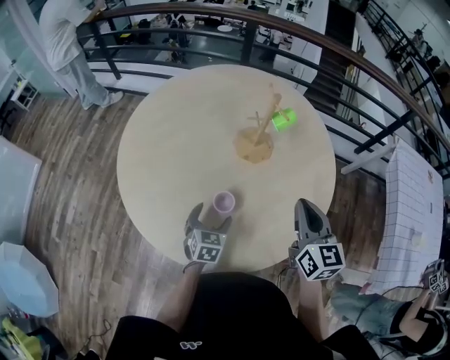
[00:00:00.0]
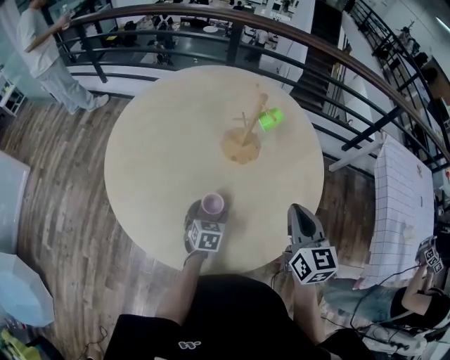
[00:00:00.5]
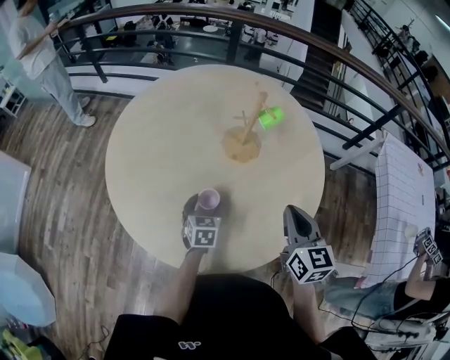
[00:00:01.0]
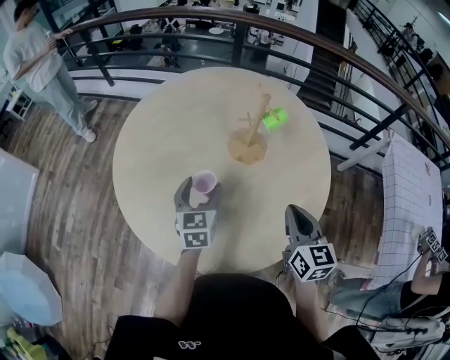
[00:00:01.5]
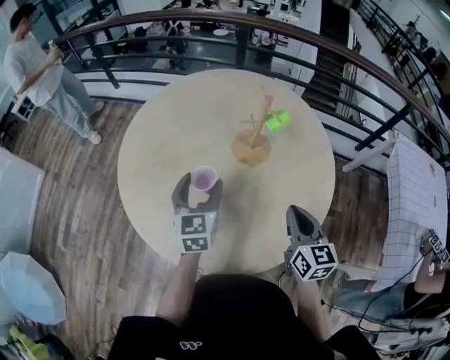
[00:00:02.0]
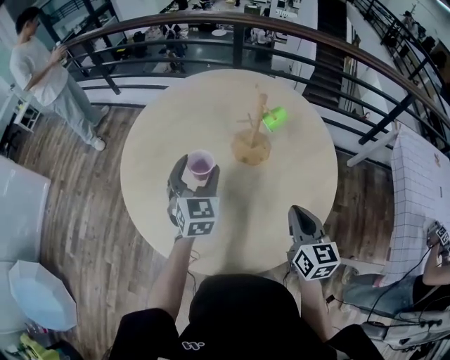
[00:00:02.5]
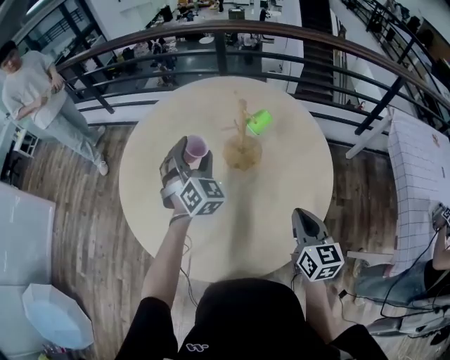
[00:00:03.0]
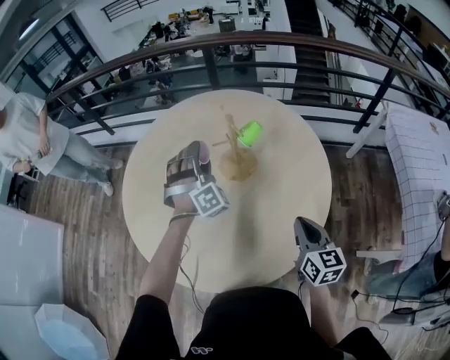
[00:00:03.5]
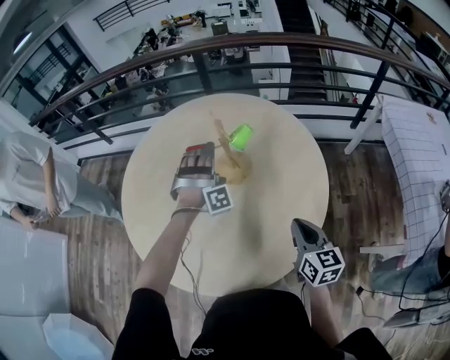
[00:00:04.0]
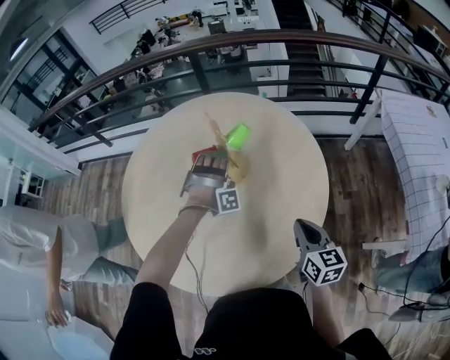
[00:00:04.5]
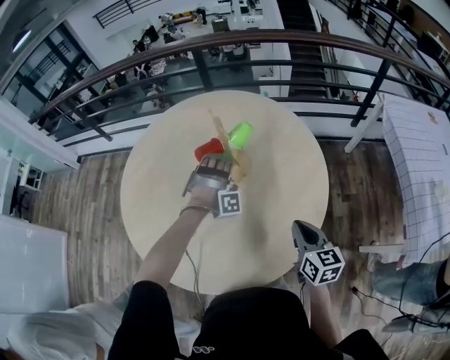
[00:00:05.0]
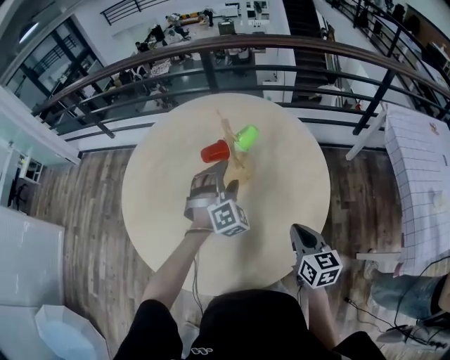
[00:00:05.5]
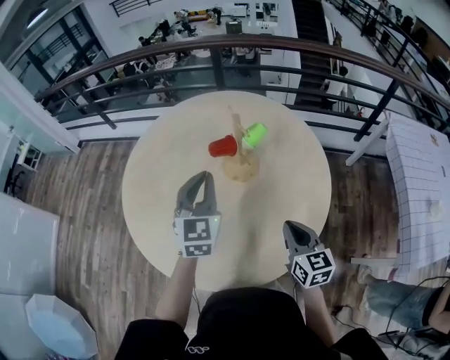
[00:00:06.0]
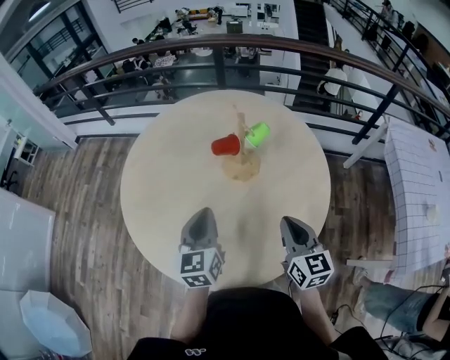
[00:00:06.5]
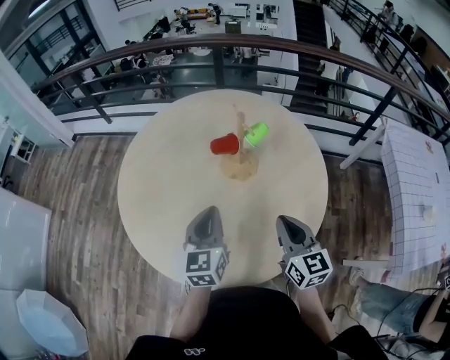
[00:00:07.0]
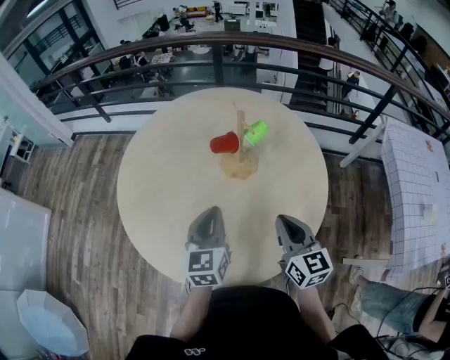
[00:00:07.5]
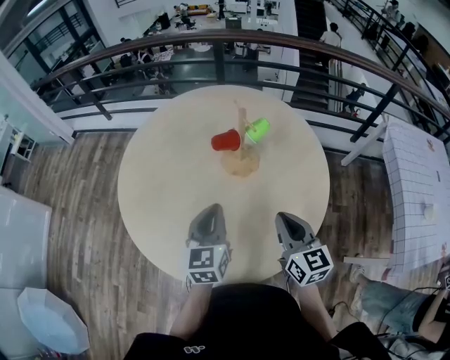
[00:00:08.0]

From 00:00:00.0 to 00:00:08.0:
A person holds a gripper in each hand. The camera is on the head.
From 00:00:00.0 to 00:00:02.0: The left gripper heads upward and forward, covering approximately 20 cm, and rotates some 20 degrees.
From 00:00:02.0 to 00:00:04.0: The right gripper travels to the right by approximately 5 cm. Meanwhile the left gripper travels to the right and forward by approximately 20 cm, and twists approximately 100 degrees clockwise, seen from behind.
From 00:00:04.0 to 00:00:06.0: The left gripper travels backward, upward and to the left by some 15 cm, rotates around the line of its fingers by some 90 degrees, counterclockwise from behind, and closes.
From 00:00:06.0 to 00:00:08.0: The left gripper moves backward and downward, approximately 10 cm, and swivels about 20 degrees, while the right gripper ends up about 5 cm from where it was.

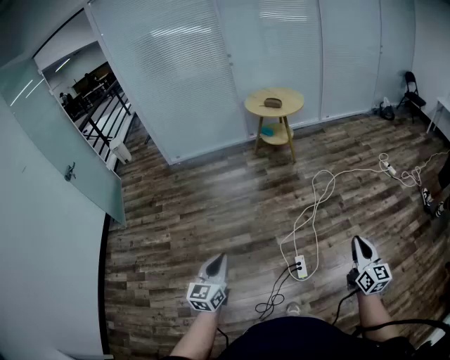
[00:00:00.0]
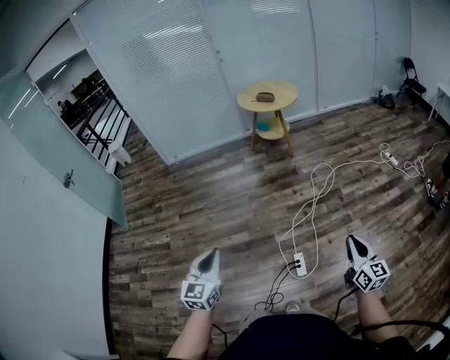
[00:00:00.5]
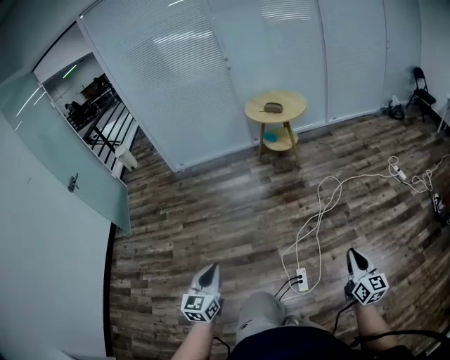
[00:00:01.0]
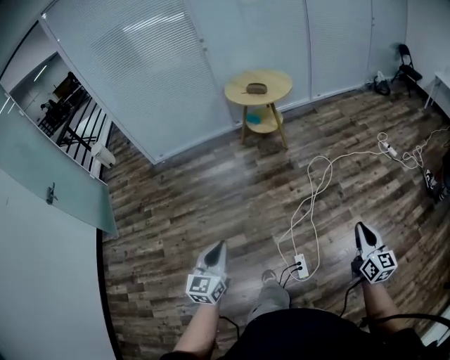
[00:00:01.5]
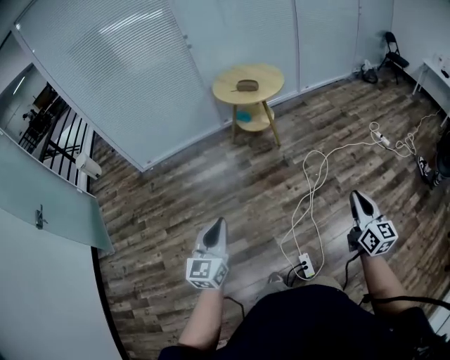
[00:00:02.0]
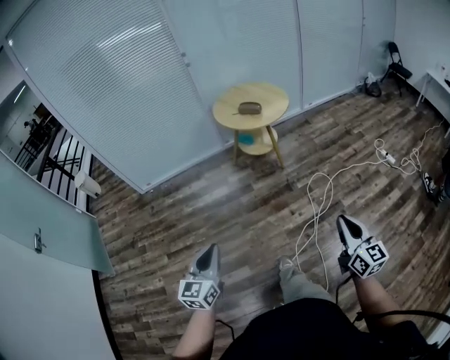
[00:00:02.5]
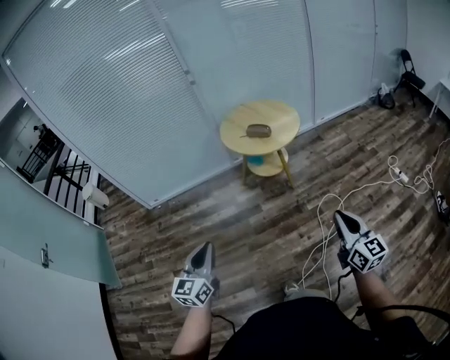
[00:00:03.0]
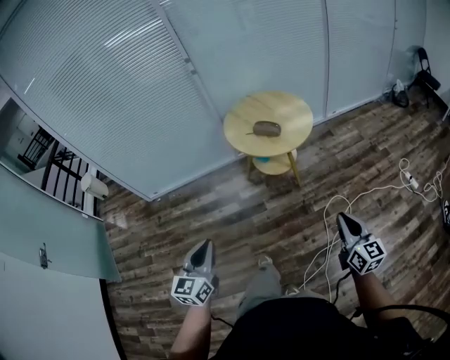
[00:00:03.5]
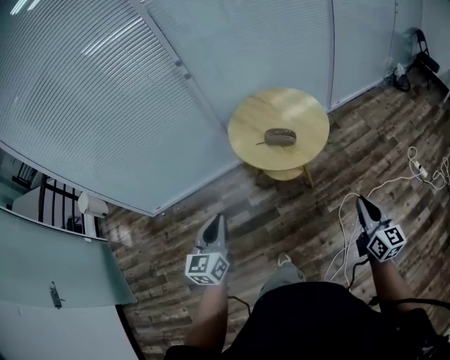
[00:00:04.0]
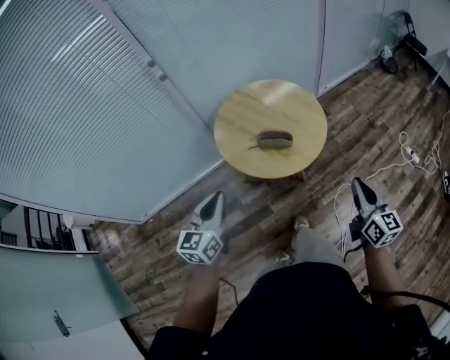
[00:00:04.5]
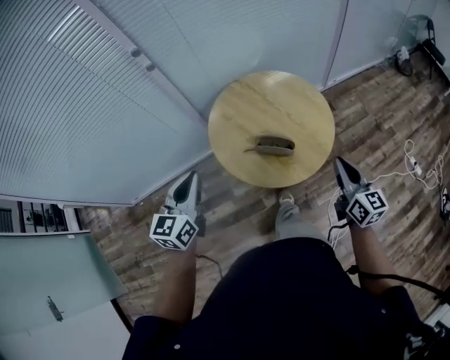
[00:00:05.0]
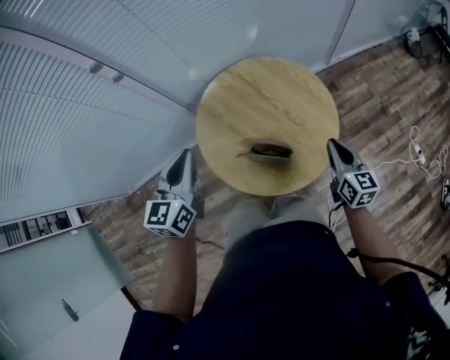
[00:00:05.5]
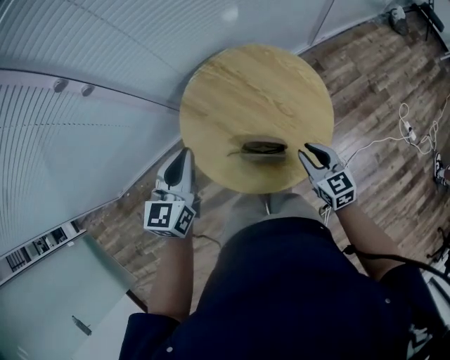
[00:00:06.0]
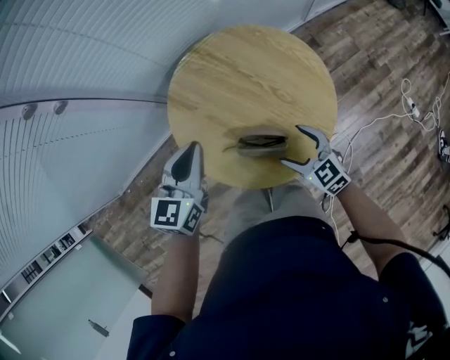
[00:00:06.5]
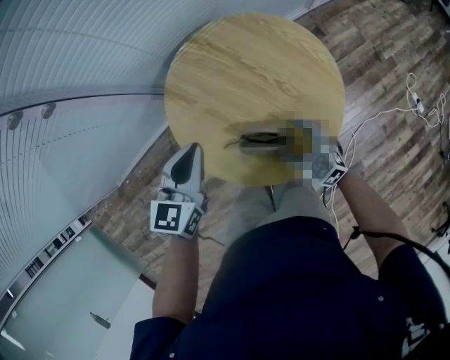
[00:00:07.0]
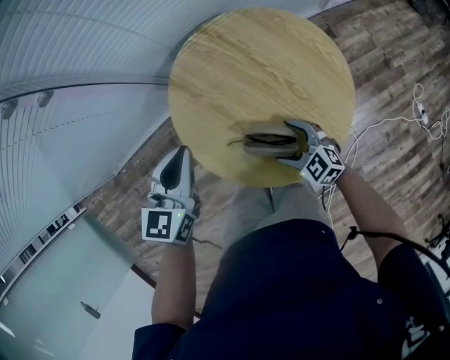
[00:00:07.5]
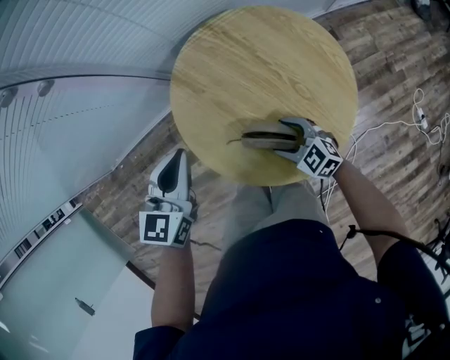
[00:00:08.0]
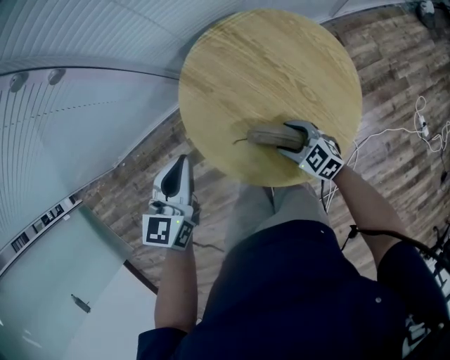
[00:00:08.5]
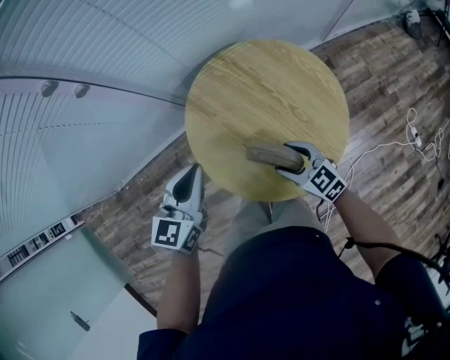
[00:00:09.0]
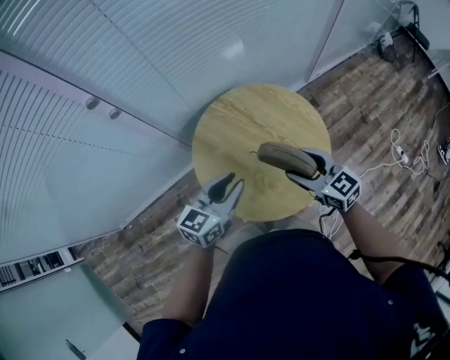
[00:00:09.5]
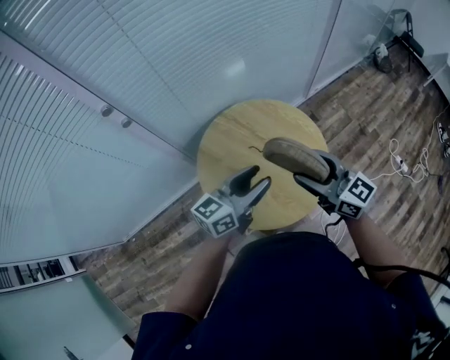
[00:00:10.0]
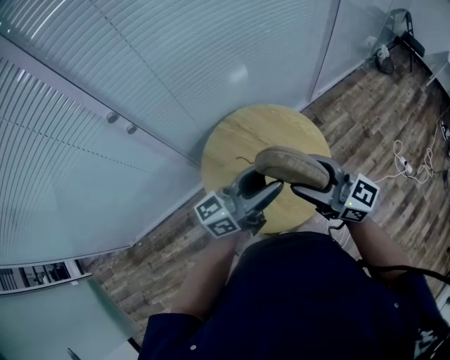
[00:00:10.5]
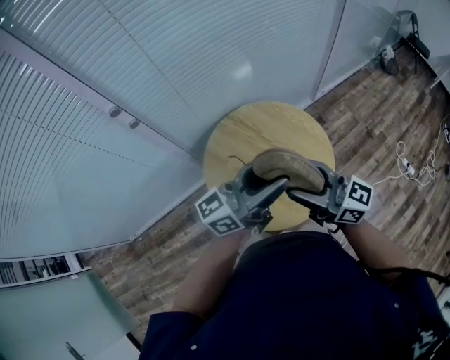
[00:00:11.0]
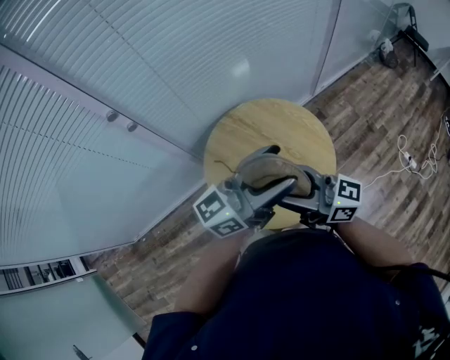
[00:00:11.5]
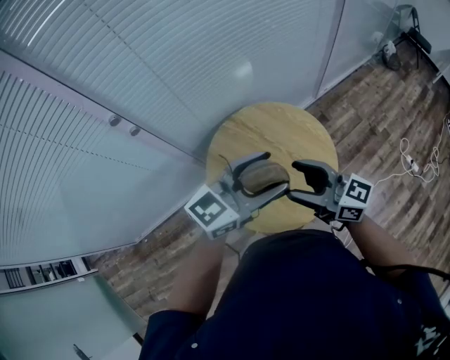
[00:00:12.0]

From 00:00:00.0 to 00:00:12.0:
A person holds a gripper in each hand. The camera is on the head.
From 00:00:00.0 to 00:00:02.0: Both grippers move forward, about 35 cm.
From 00:00:02.0 to 00:00:04.0: The pair of grippers is taken forward, about 70 cm.
From 00:00:04.0 to 00:00:06.0: The two grippers travel together, forward, approximately 50 cm. The right gripper changes its angle by some 30 degrees.
From 00:00:06.0 to 00:00:08.0: The left gripper heads downward, covering some 5 cm. The right gripper moves downward and to the left, roughly 15 cm, changes its angle by roughly 40 degrees, and opens.
From 00:00:08.0 to 00:00:10.0: The left gripper shifts by some 15 cm, swivels about 50 degrees, and opens its fingers. The right gripper travels upward by approximately 35 cm, and tips its fingers upward by approximately 40 degrees.
From 00:00:10.0 to 00:00:12.0: The left gripper moves upward, approximately 10 cm, turns by about 20 degrees, and opens its fingers.

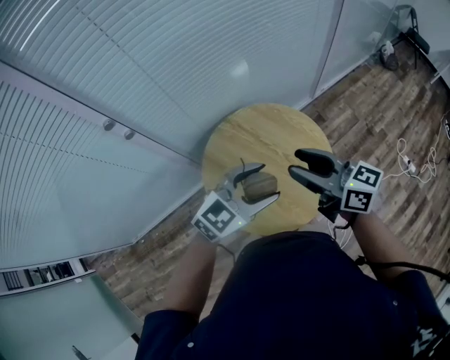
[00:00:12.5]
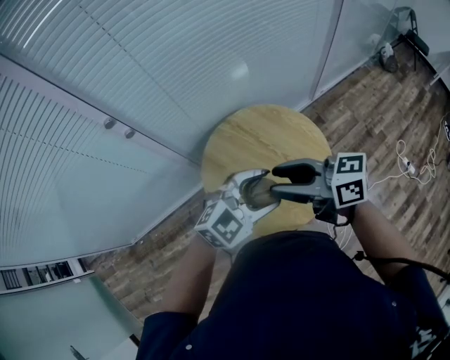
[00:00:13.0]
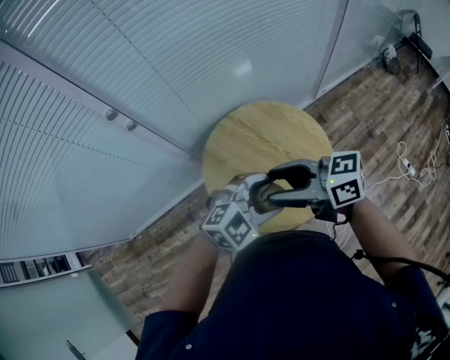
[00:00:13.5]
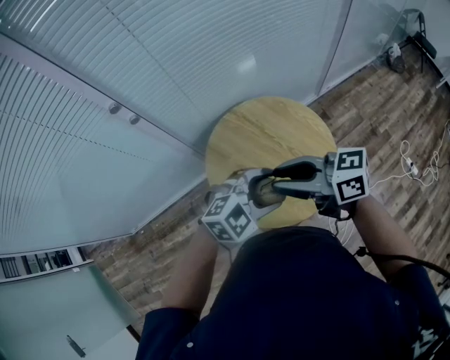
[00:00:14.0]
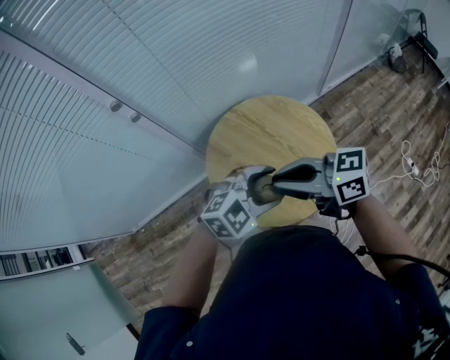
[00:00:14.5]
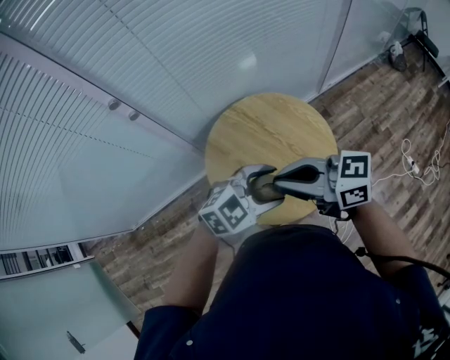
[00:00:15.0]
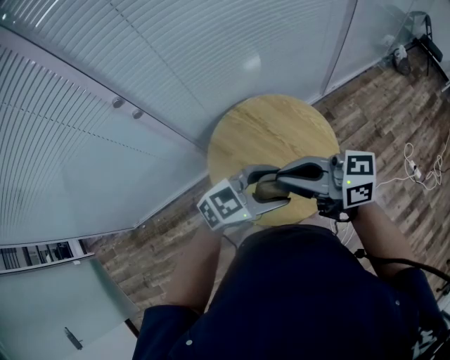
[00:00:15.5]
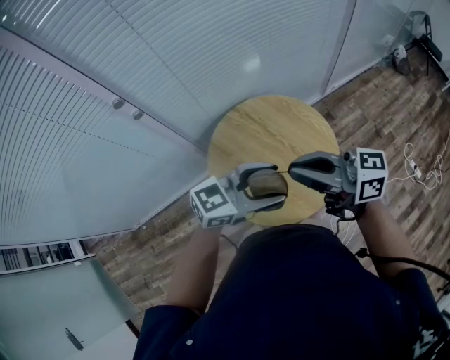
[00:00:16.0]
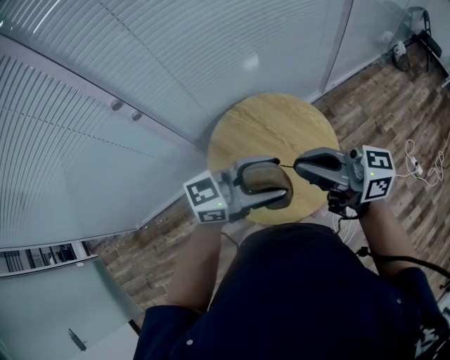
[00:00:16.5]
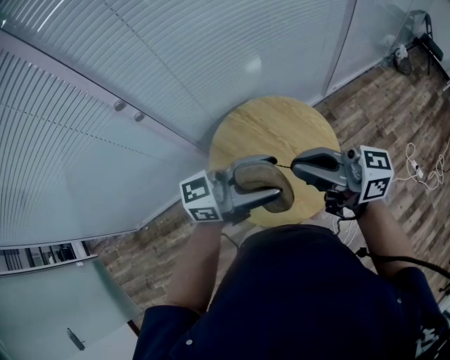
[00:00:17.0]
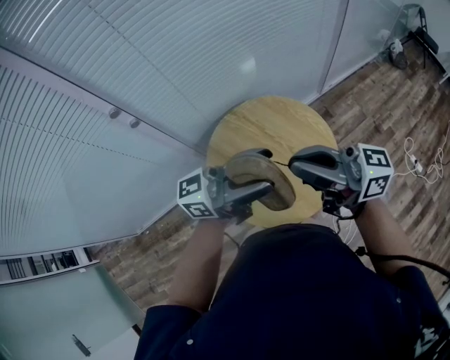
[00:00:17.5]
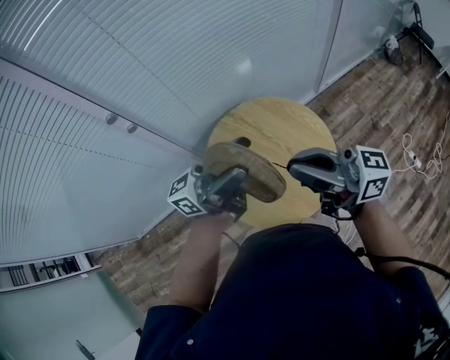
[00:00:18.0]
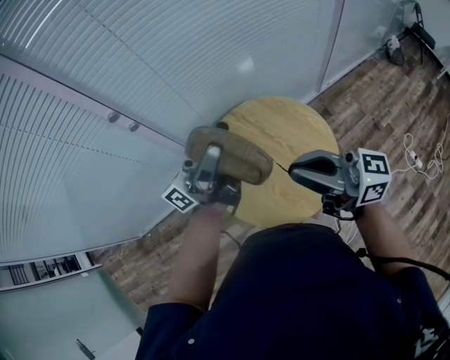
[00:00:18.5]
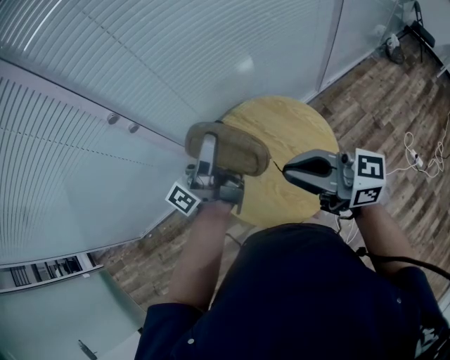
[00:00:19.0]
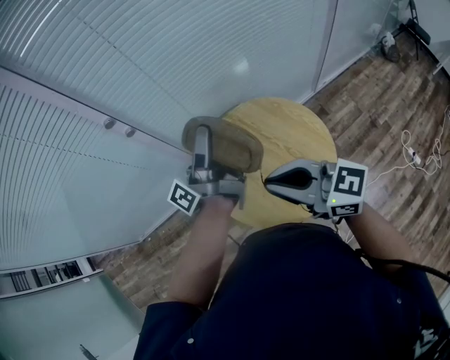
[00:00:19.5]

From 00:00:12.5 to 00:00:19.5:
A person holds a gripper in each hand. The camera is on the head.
From 00:00:12.5 to 00:00:14.5: The left gripper changes place by roughly 5 cm. Meanwhile the right gripper shifts by roughly 10 cm, turns by roughly 30 degrees, and closes up.
From 00:00:14.5 to 00:00:16.0: The right gripper shifts by about 5 cm, while the left gripper is displaced upward by some 5 cm, and turns by approximately 40 degrees.
From 00:00:16.0 to 00:00:17.5: The left gripper moves upward, some 10 cm, and points its fingers approximately 30 degrees further upward.
From 00:00:17.5 to 00:00:19.5: The right gripper goes approximately 5 cm downward, and swivels about 30 degrees; the left gripper ends up some 15 cm from where it was, and swivels some 50 degrees.
